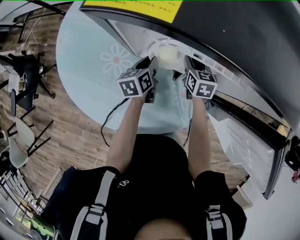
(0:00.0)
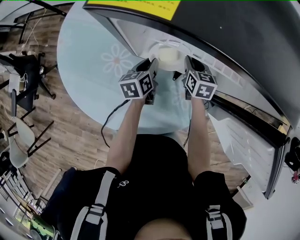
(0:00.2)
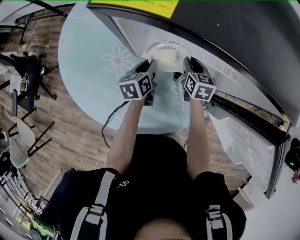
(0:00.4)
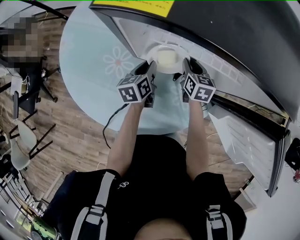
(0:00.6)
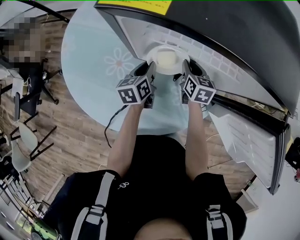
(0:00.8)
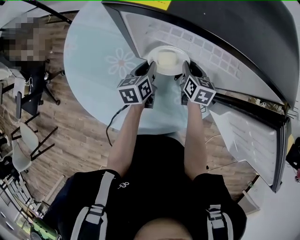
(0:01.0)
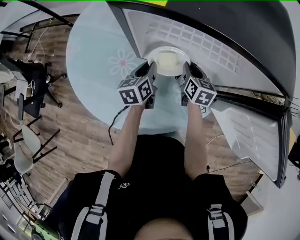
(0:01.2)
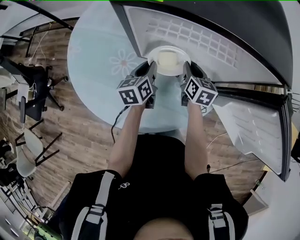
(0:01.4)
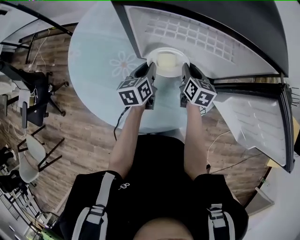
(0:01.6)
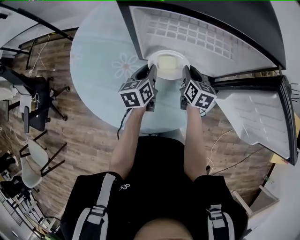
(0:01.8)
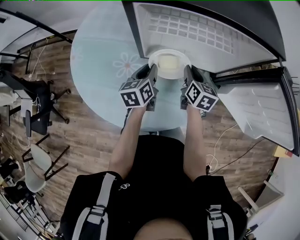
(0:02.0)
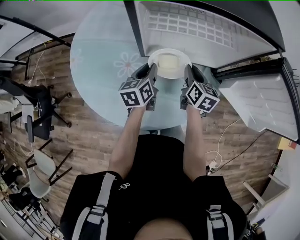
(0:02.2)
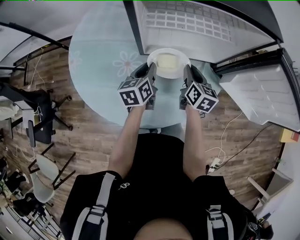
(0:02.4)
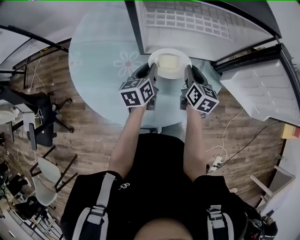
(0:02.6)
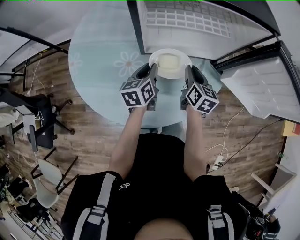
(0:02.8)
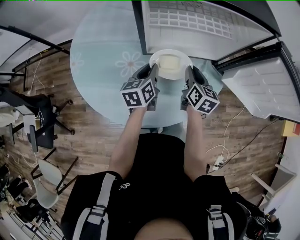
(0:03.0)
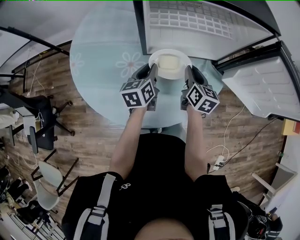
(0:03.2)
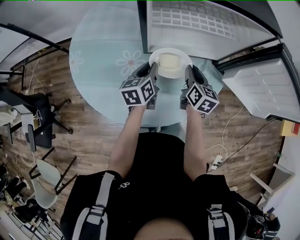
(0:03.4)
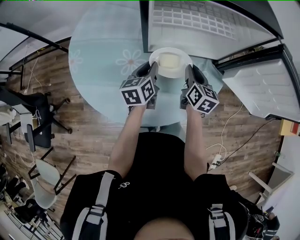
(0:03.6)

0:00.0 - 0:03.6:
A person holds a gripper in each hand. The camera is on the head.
0:00.0 - 0:01.8: The left gripper moves upward and backward, some 10 cm. Meanwhile the right gripper travels backward and upward by approximately 10 cm, and changes its angle by about 20 degrees.
0:01.8 - 0:03.6: The right gripper moves backward, some 5 cm.

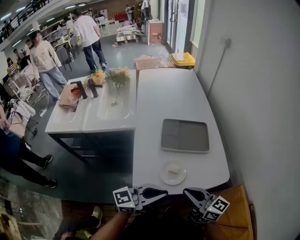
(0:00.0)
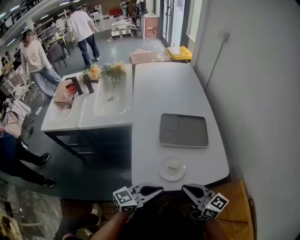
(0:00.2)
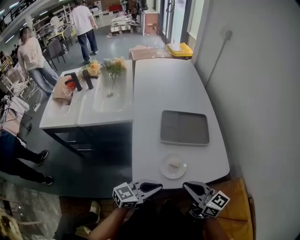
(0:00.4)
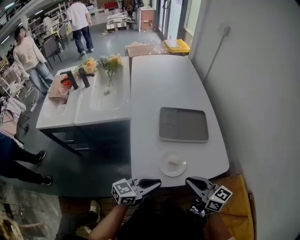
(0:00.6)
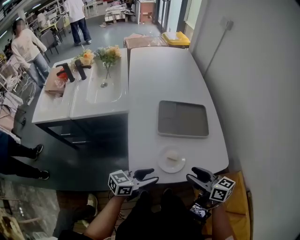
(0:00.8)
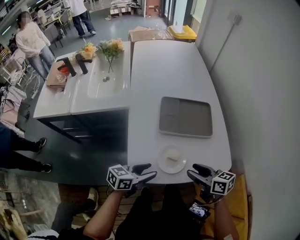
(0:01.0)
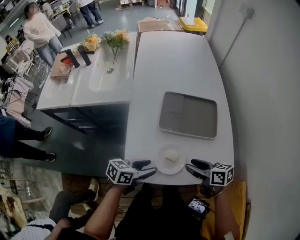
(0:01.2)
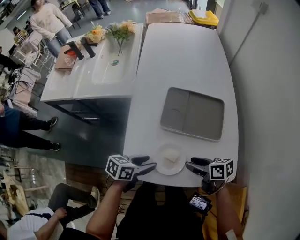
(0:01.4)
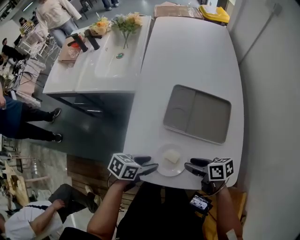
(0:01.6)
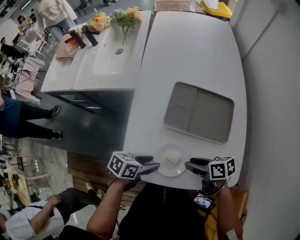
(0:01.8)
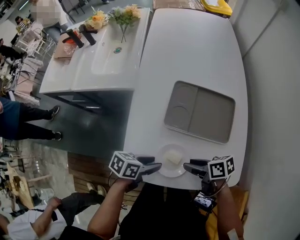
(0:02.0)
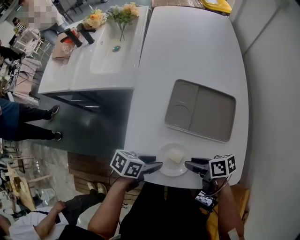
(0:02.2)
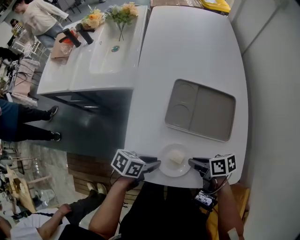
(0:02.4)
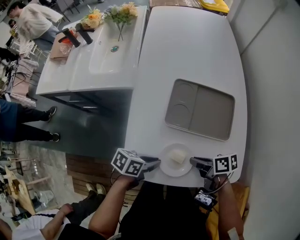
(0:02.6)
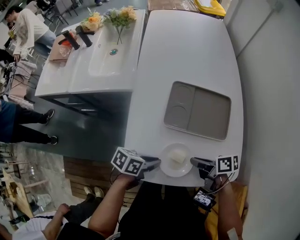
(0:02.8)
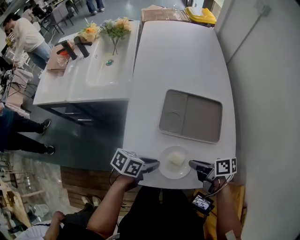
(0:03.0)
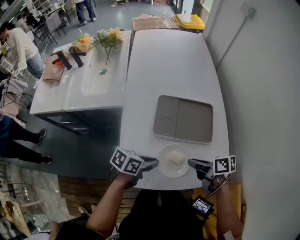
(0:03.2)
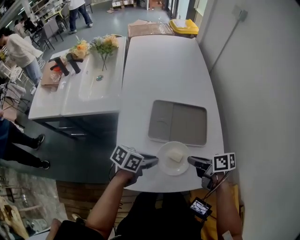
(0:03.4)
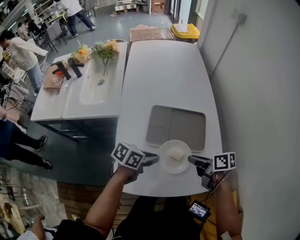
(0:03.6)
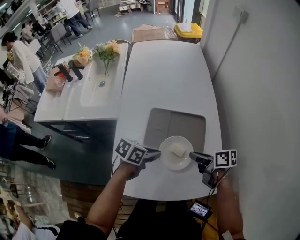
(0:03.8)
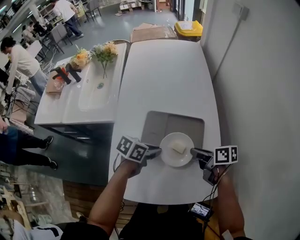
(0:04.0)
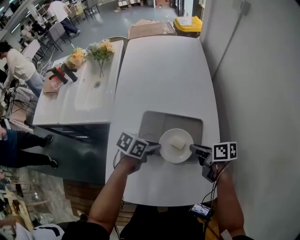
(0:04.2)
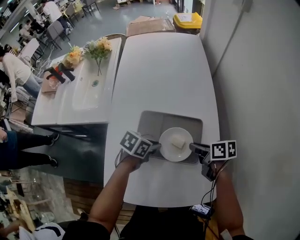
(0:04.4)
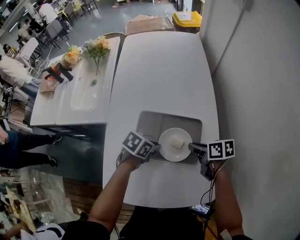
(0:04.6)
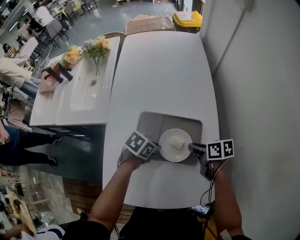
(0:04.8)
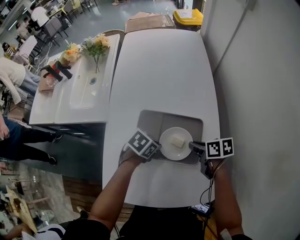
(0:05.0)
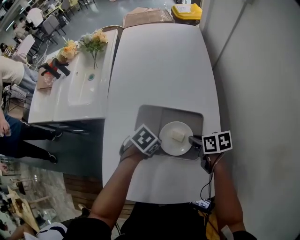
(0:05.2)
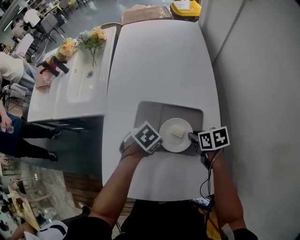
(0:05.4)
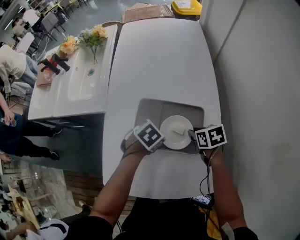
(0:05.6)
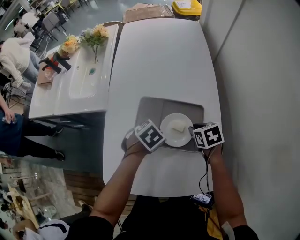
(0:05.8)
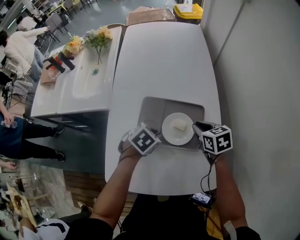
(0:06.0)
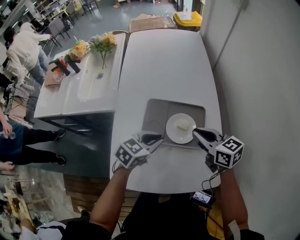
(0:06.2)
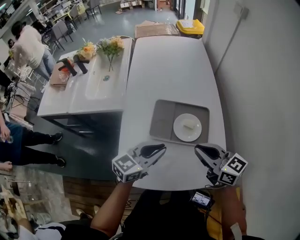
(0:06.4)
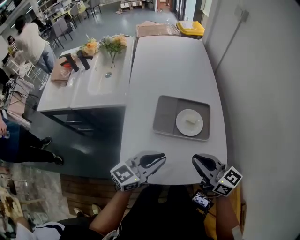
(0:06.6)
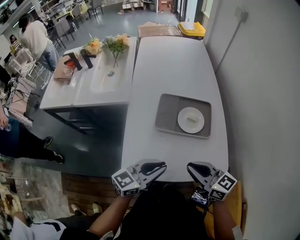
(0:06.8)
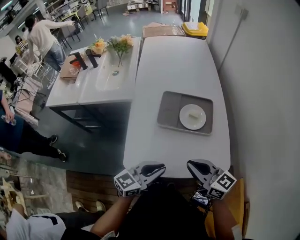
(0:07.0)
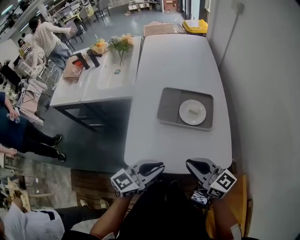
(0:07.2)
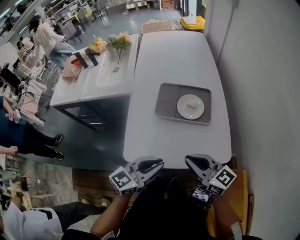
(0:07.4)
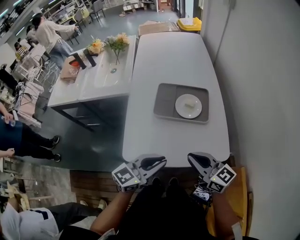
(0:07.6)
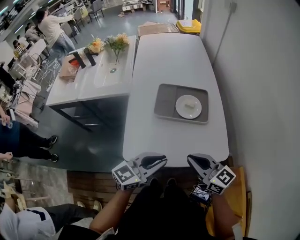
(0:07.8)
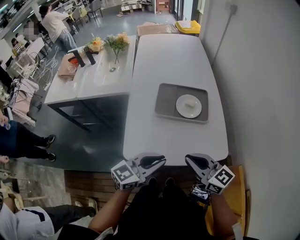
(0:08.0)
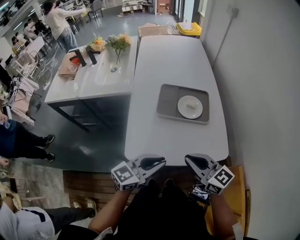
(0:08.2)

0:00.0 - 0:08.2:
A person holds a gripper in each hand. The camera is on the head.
0:00.0 - 0:01.6: Both grippers travel together downward, roughly 20 cm. The left gripper tilts its fingers some 50 degrees downward, and opens its fingers, while the right gripper swivels about 50 degrees, and opens up.
0:01.6 - 0:03.2: The right gripper changes place by about 5 cm, and closes its fingers, while the left gripper changes place by approximately 5 cm, and closes its fingers.
0:03.2 - 0:05.0: The right gripper changes place by about 20 cm, while the left gripper ends up about 20 cm from where it was, and changes its angle by roughly 30 degrees.
0:05.0 - 0:06.6: The right gripper ends up approximately 30 cm from where it was, and angles its fingers upward, by about 40 degrees, while the left gripper changes place by roughly 25 cm, and points its fingers some 50 degrees further upward.
0:06.6 - 0:08.2: The grippers both shift backward by approximately 15 cm.

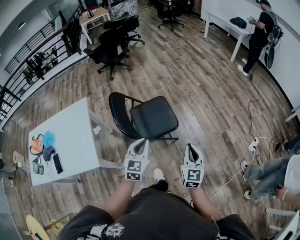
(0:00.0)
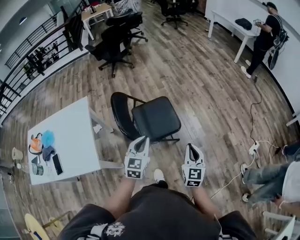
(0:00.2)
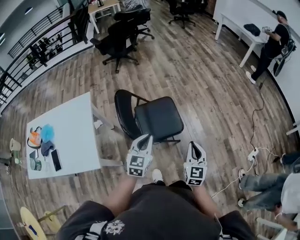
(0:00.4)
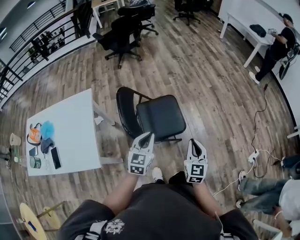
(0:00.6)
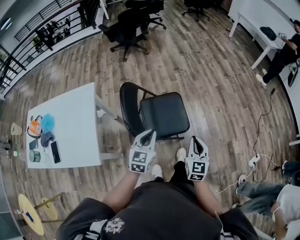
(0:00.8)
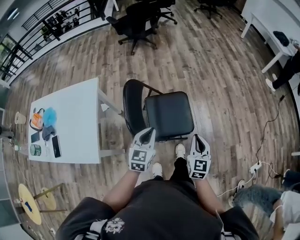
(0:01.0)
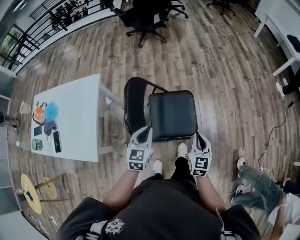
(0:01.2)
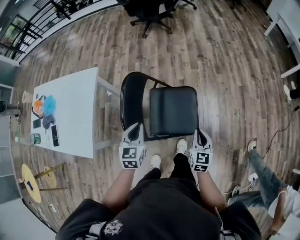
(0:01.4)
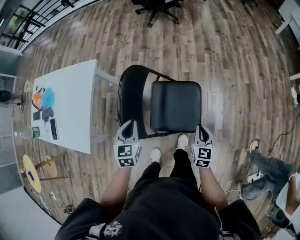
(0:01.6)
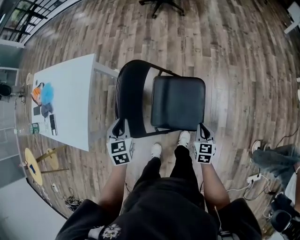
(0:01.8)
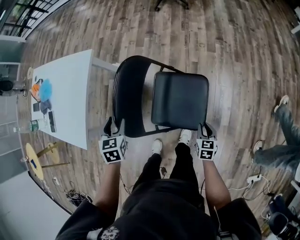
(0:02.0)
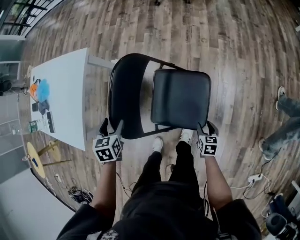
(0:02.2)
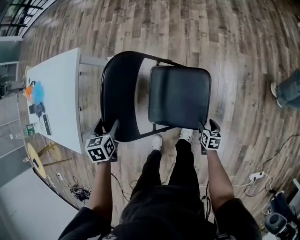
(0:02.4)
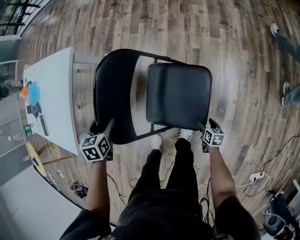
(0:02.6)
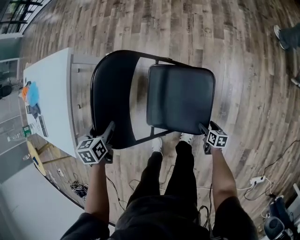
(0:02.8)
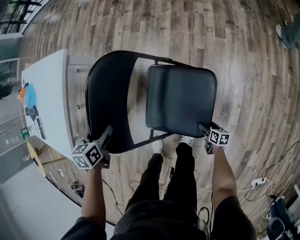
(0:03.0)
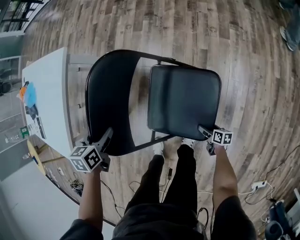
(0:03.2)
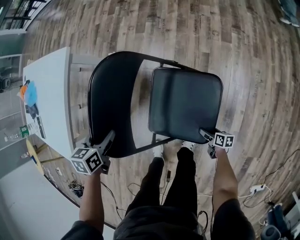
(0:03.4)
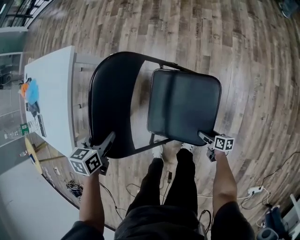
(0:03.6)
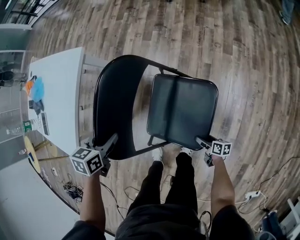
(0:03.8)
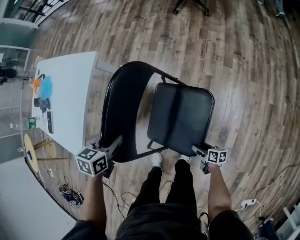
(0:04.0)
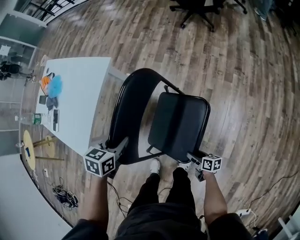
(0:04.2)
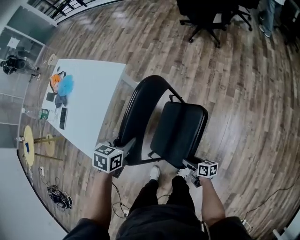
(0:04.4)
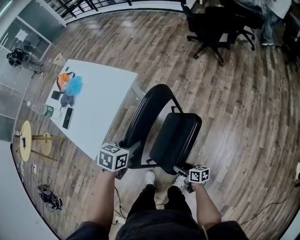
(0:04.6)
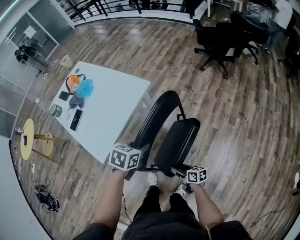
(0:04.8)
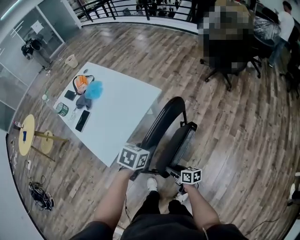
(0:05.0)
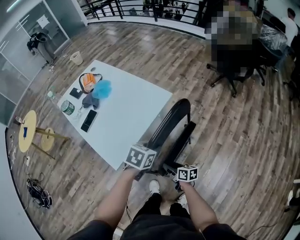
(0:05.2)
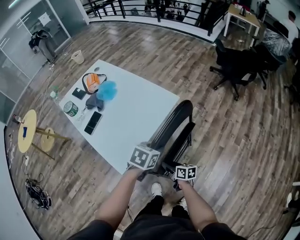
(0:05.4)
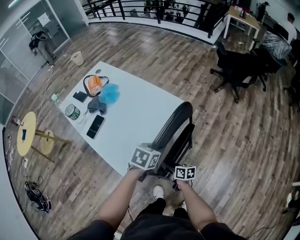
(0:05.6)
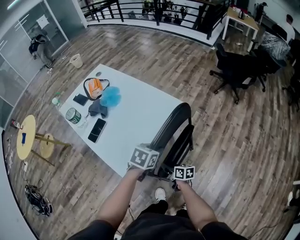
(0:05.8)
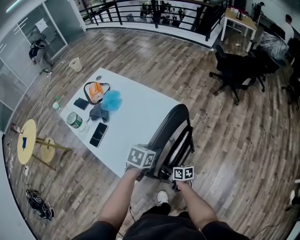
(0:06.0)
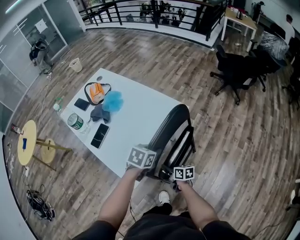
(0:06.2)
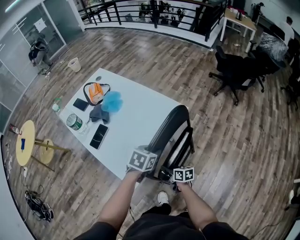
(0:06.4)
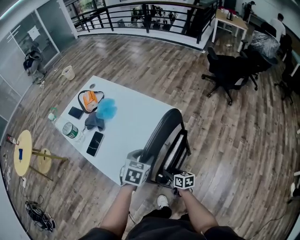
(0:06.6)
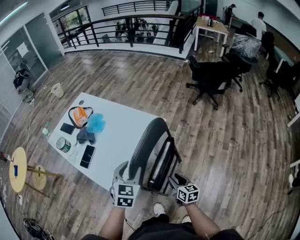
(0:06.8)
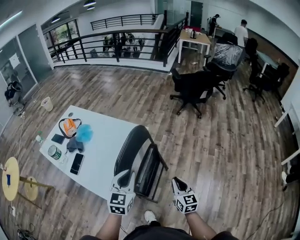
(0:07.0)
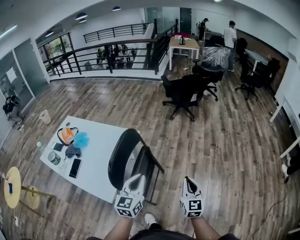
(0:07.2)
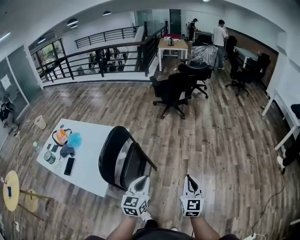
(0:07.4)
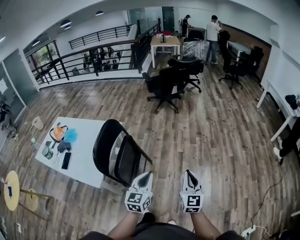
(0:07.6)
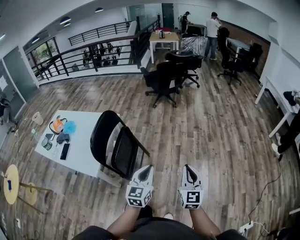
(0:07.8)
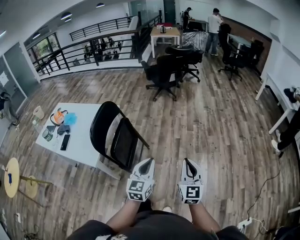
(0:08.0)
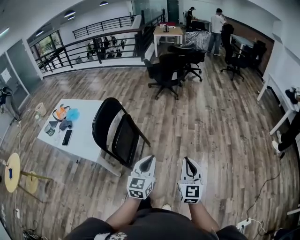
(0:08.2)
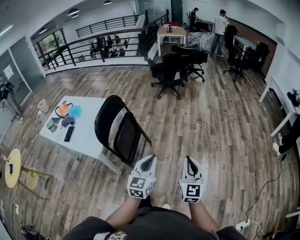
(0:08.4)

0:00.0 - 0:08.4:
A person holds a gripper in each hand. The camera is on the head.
0:00.0 - 0:01.4: The right gripper moves approximately 35 cm, and swivels approximately 30 degrees. The left gripper moves about 30 cm, and swivels some 30 degrees.
0:01.4 - 0:02.8: The left gripper heads downward, covering approximately 20 cm, changes its angle by roughly 40 degrees, and opens. The right gripper shifts about 40 cm downward, changes its angle by some 50 degrees, and opens its fingers.
0:02.8 - 0:04.2: The right gripper heads upward and to the left, covering about 20 cm, and rotates some 30 degrees. Meanwhile the left gripper travels upward by some 10 cm, and closes up.
0:04.2 - 0:05.6: The right gripper heads to the left, forward and upward, covering some 50 cm, and turns by roughly 20 degrees. The left gripper goes approximately 25 cm to the left, forward and upward.
0:05.6 - 0:07.0: The left gripper heads upward and backward, covering some 15 cm, tilts its fingers about 30 degrees upward, and opens, then closes again. Meanwhile the right gripper travels upward and to the right by some 25 cm, and turns by about 50 degrees.
0:07.0 - 0:08.4: The pair of grippers is taken to the right and backward, roughly 40 cm. The right gripper goes roughly 15 cm upward, and turns by approximately 30 degrees.

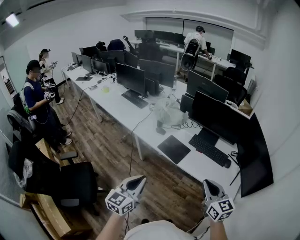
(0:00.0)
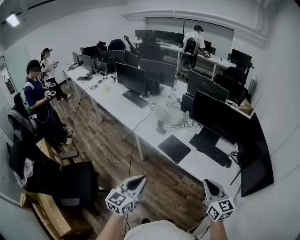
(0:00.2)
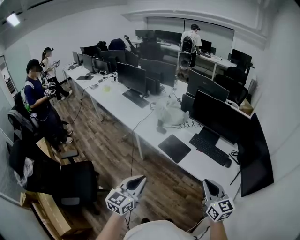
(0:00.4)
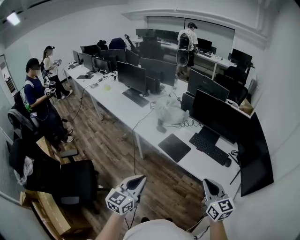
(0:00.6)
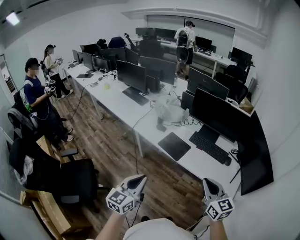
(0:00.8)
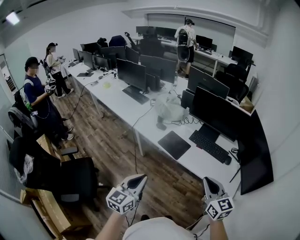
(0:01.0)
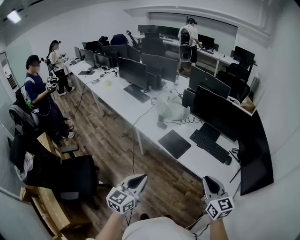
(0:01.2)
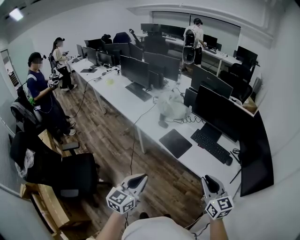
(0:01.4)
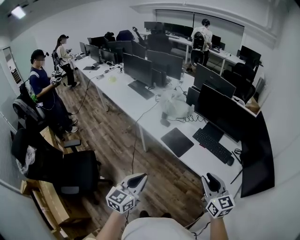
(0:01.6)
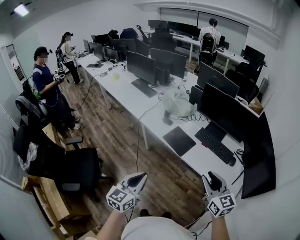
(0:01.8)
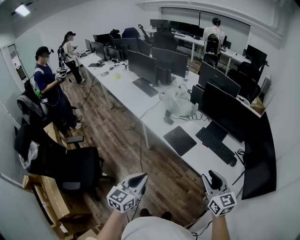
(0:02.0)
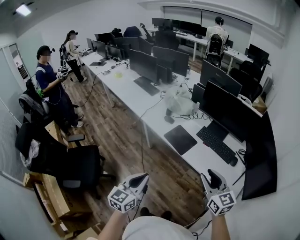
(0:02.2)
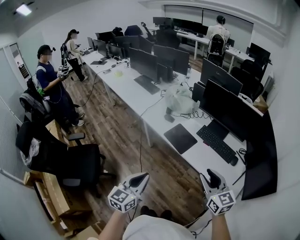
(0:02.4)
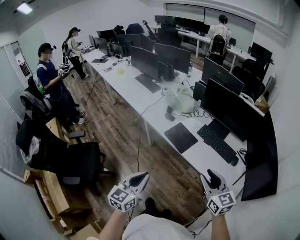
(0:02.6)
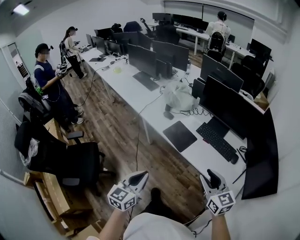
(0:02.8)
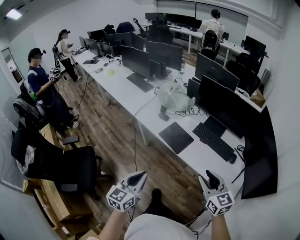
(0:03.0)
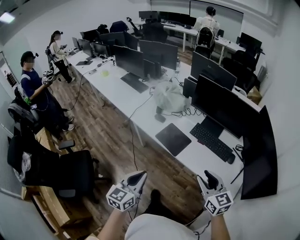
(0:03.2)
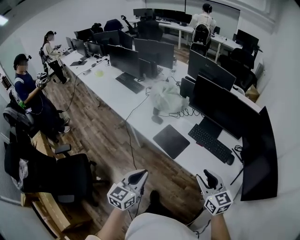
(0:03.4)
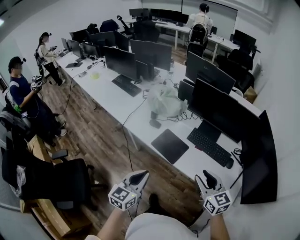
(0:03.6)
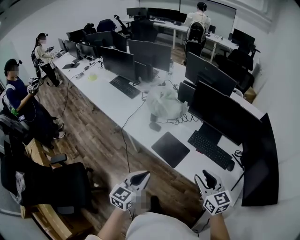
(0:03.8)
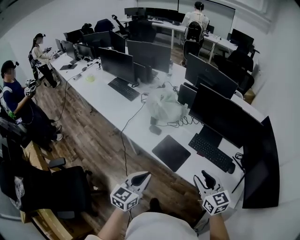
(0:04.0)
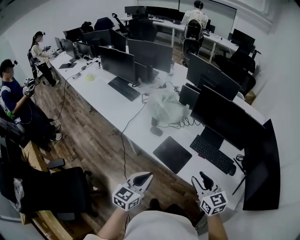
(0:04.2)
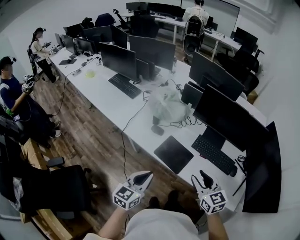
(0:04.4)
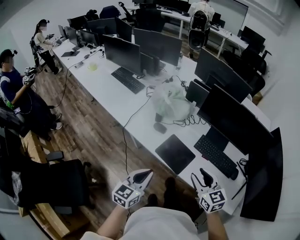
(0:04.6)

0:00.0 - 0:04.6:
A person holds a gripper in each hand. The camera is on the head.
0:00.0 - 0:01.6: There are only small adjustments of the grippers.
0:01.6 - 0:03.0: The left gripper moves approximately 5 cm. The right gripper shifts by some 5 cm.
0:03.0 - 0:04.6: The right gripper travels forward and to the left by about 25 cm, while the left gripper travels forward by roughly 25 cm.
